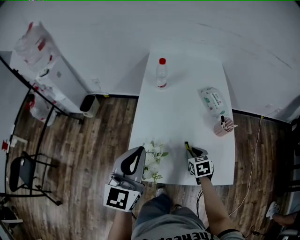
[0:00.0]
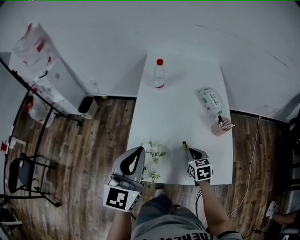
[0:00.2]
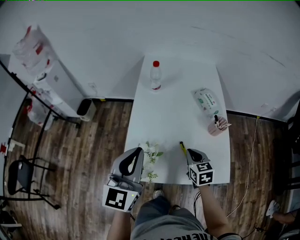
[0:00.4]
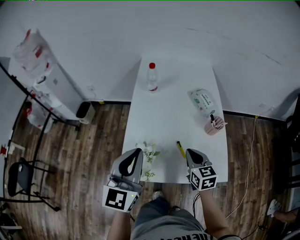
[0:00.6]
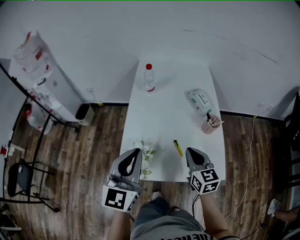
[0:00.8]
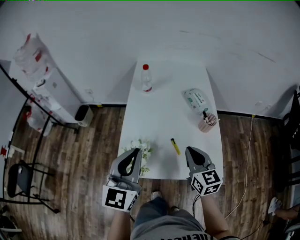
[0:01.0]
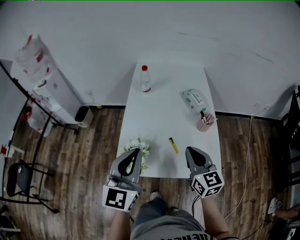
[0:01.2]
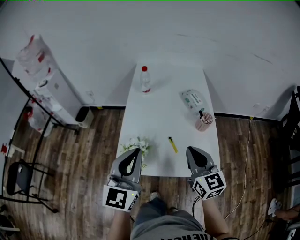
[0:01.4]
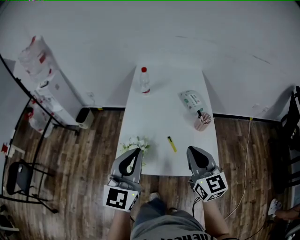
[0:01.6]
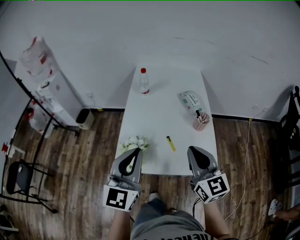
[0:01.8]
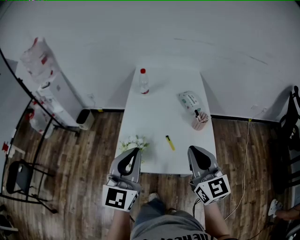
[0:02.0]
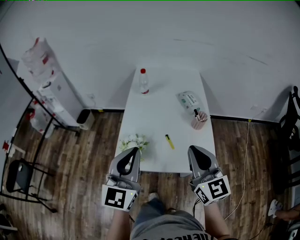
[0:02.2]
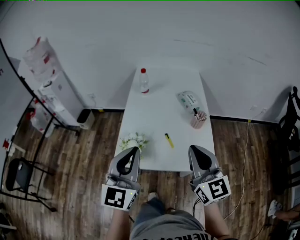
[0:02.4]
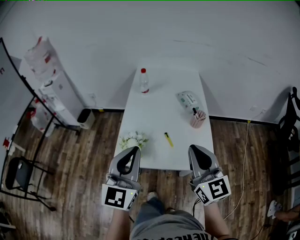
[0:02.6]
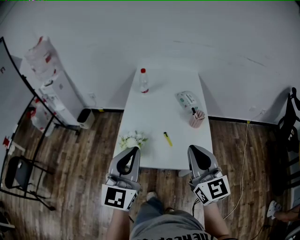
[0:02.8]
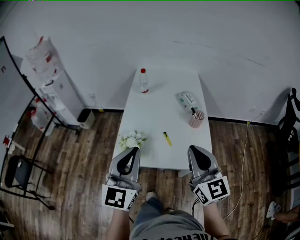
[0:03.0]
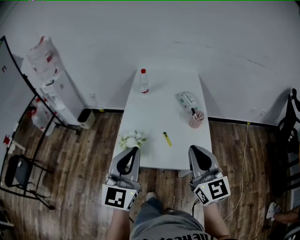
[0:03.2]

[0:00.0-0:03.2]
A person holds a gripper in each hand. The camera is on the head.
0:00.0 to 0:01.6: The right gripper heads upward and backward, covering about 30 cm, and tilts its fingers about 50 degrees upward; the left gripper is displaced backward and to the right by about 10 cm.
0:01.6 to 0:03.2: The right gripper shifts some 10 cm backward and upward, while the left gripper goes some 5 cm backward.

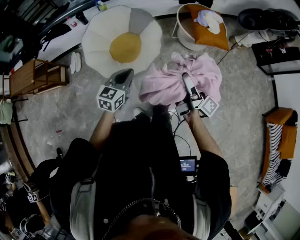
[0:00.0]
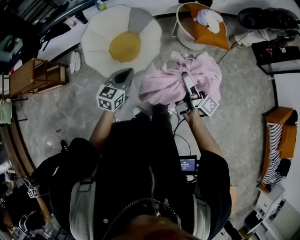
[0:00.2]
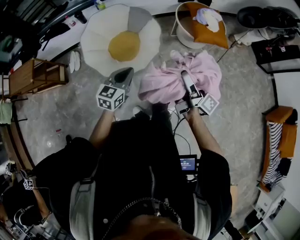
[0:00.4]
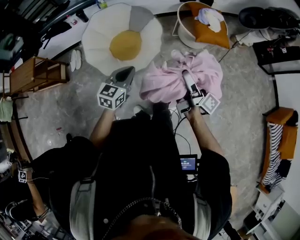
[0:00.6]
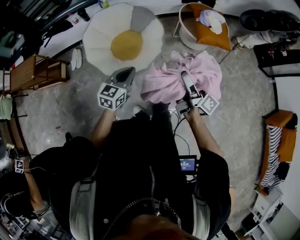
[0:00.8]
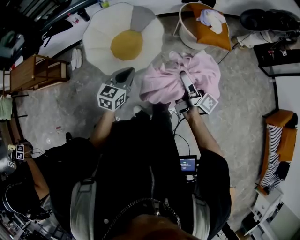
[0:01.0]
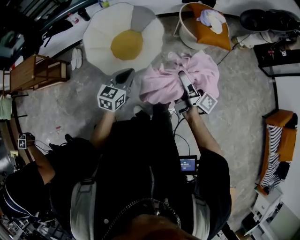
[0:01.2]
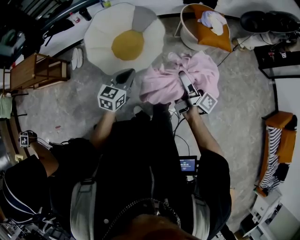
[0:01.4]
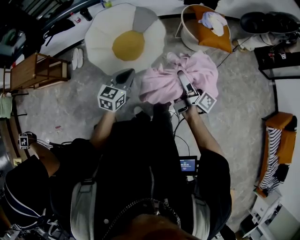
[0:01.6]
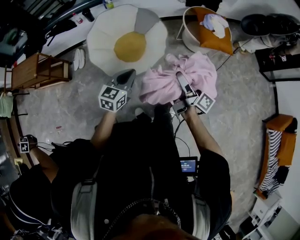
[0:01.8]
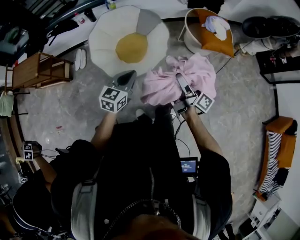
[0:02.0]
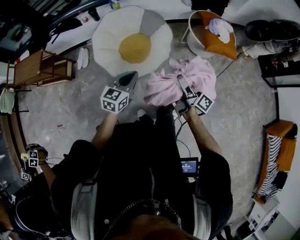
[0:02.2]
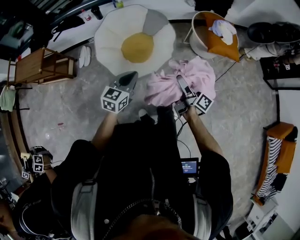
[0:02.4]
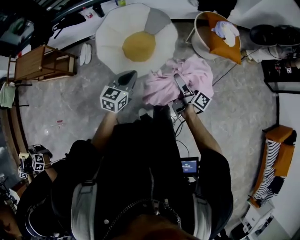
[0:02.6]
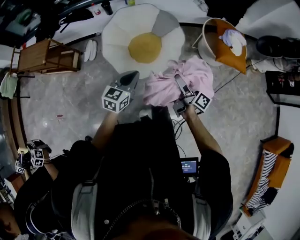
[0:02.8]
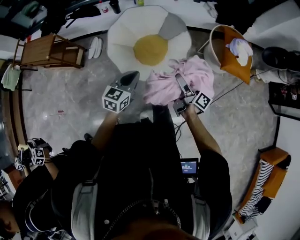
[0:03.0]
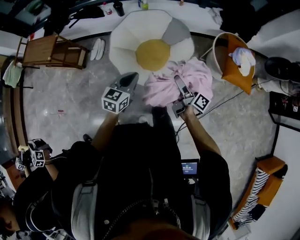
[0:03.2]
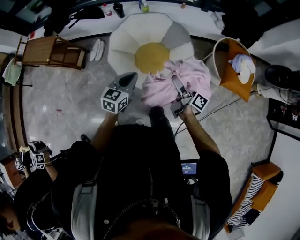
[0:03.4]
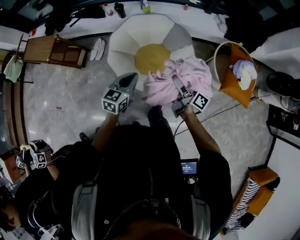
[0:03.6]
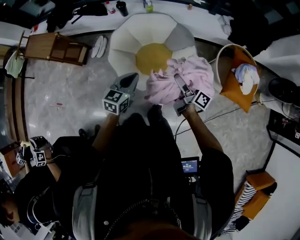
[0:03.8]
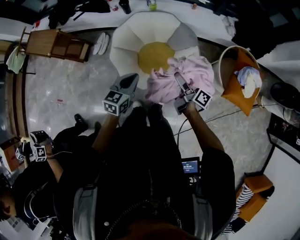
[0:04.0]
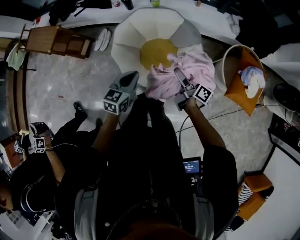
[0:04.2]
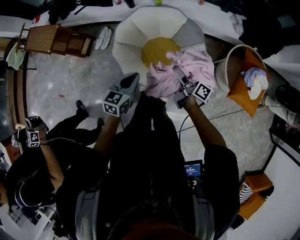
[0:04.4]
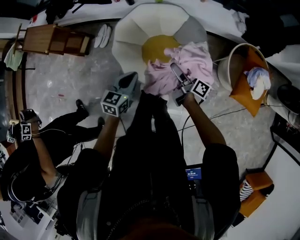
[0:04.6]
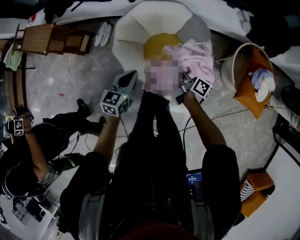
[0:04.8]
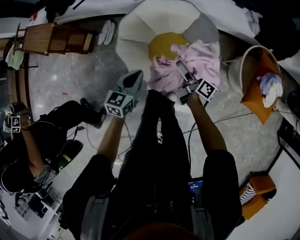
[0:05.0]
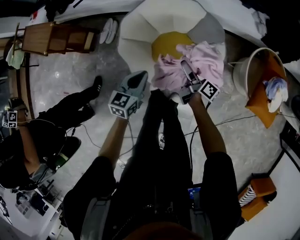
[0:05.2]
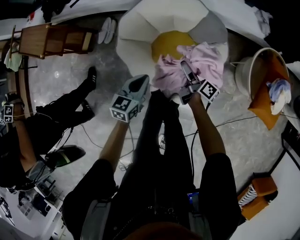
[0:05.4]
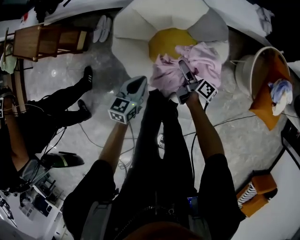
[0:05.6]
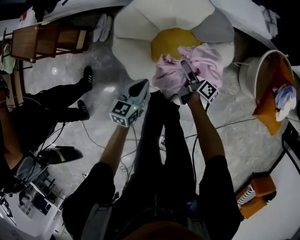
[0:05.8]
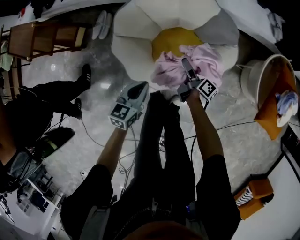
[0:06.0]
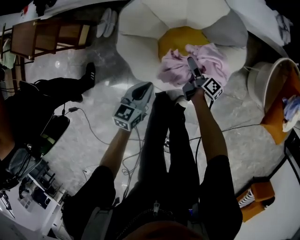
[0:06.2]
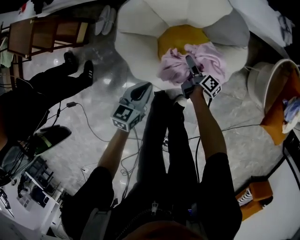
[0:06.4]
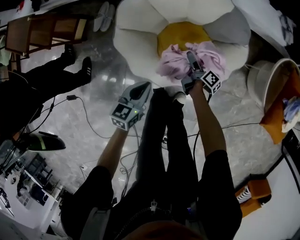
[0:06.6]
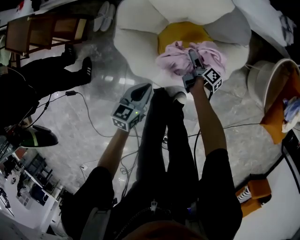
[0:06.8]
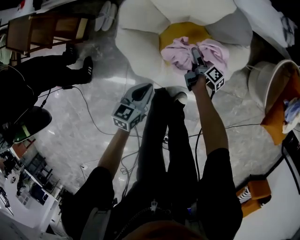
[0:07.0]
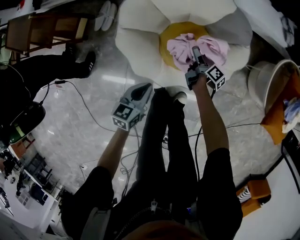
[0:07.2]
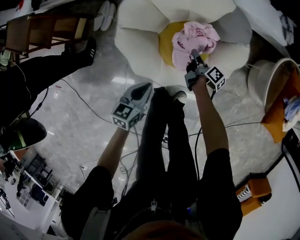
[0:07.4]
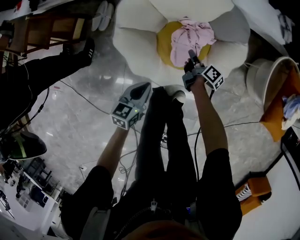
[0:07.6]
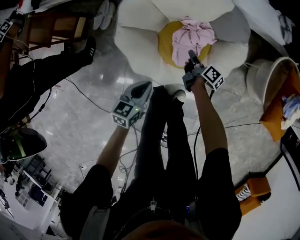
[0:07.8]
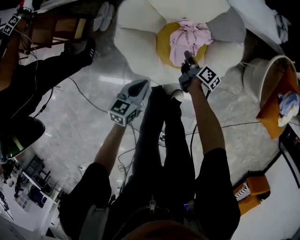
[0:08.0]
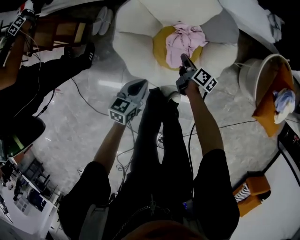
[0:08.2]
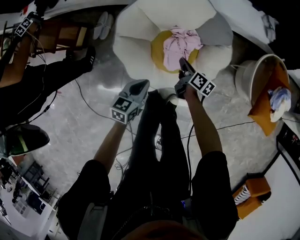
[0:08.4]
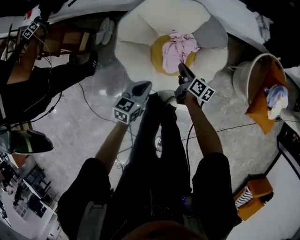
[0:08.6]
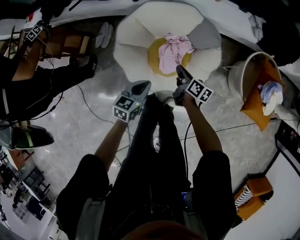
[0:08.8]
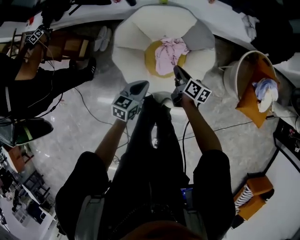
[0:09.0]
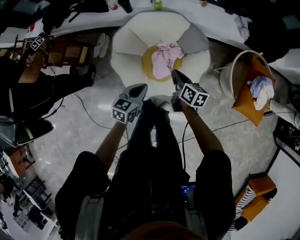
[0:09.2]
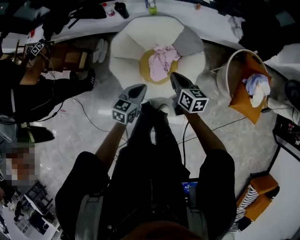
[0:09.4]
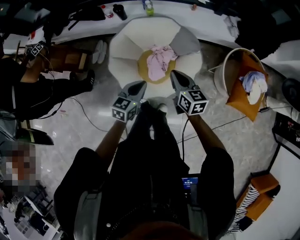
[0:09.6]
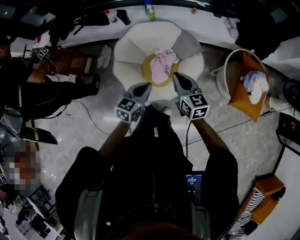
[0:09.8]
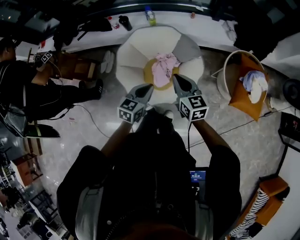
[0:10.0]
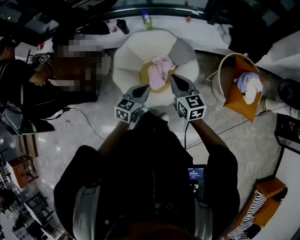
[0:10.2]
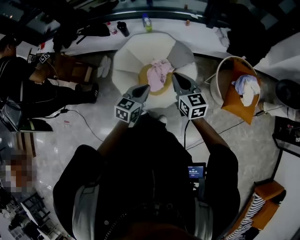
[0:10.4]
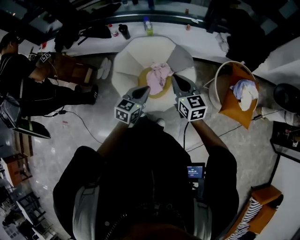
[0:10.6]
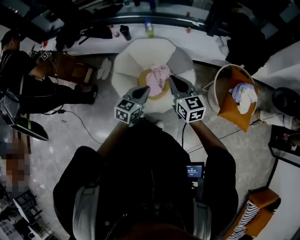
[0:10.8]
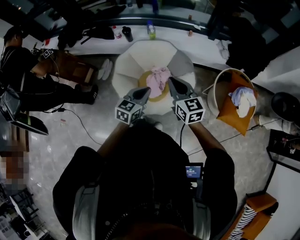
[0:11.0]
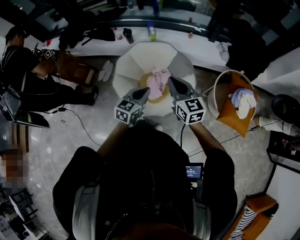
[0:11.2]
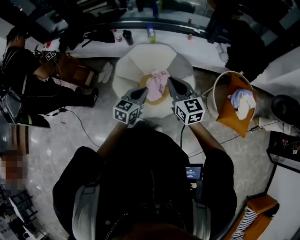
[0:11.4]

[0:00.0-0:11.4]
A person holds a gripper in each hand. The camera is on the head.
0:00.0 to 0:01.4: The grippers make only small movements.
0:01.4 to 0:02.8: The right gripper moves to the left, downward and forward, about 15 cm; the left gripper heads to the left, covering approximately 5 cm.
0:02.8 to 0:04.2: The two grippers go roughly 20 cm forward.
0:04.2 to 0:05.6: Both grippers move downward and forward, roughly 25 cm.
0:05.6 to 0:07.2: The right gripper moves downward, some 20 cm; the left gripper shifts roughly 10 cm downward.
0:07.2 to 0:08.6: The left gripper shifts approximately 10 cm upward. The right gripper moves upward, roughly 20 cm, changes its angle by some 30 degrees, and closes.
0:08.6 to 0:10.0: The left gripper moves upward and to the right, about 20 cm, while the right gripper moves upward, some 30 cm, and twists approximately 50 degrees counterclockwise, seen from behind.
0:10.0 to 0:11.4: The right gripper is displaced upward by about 10 cm.

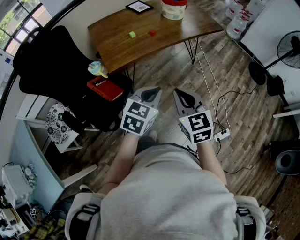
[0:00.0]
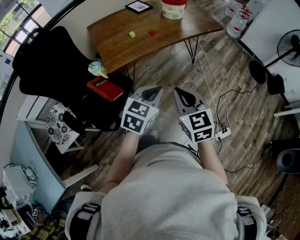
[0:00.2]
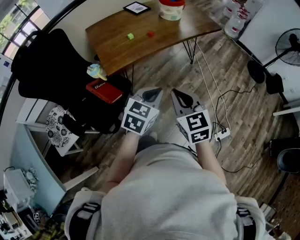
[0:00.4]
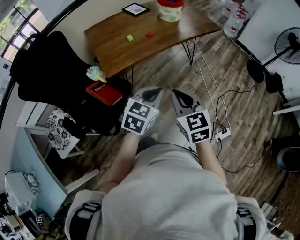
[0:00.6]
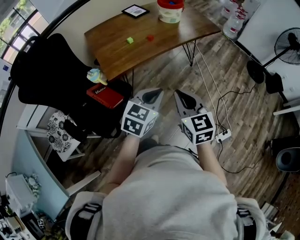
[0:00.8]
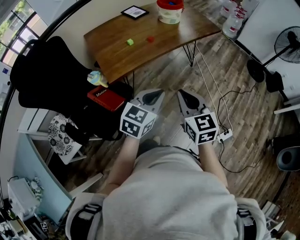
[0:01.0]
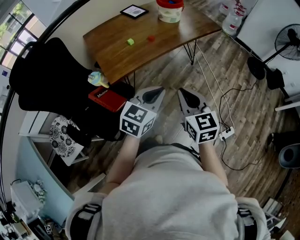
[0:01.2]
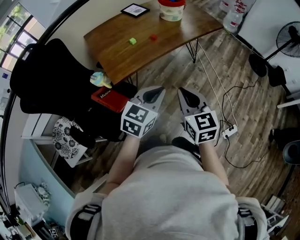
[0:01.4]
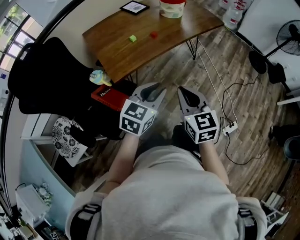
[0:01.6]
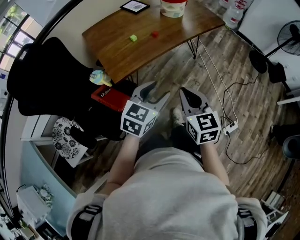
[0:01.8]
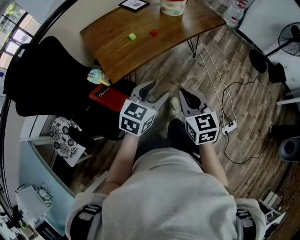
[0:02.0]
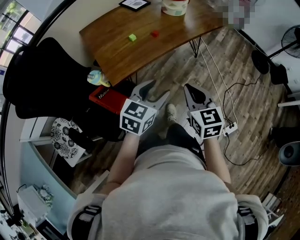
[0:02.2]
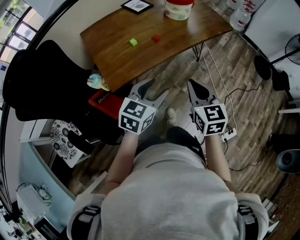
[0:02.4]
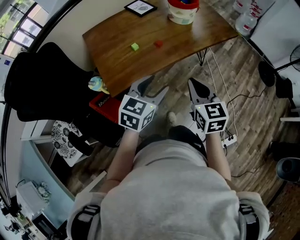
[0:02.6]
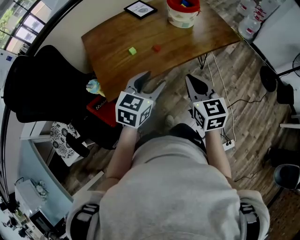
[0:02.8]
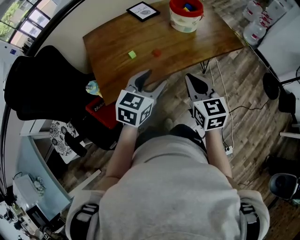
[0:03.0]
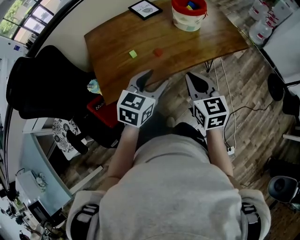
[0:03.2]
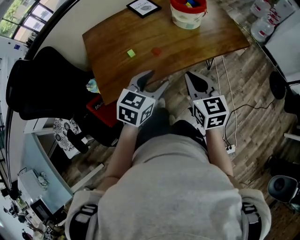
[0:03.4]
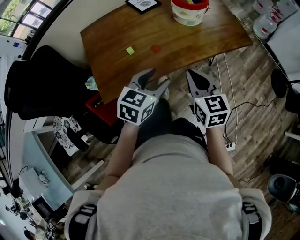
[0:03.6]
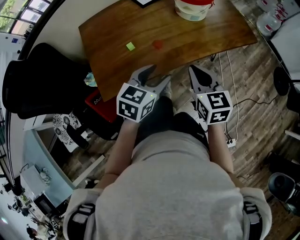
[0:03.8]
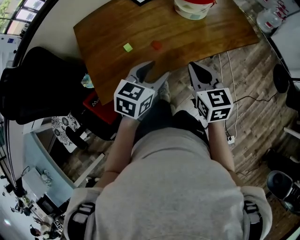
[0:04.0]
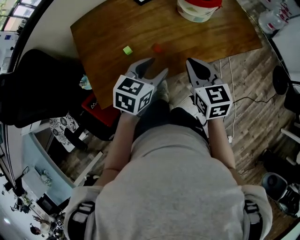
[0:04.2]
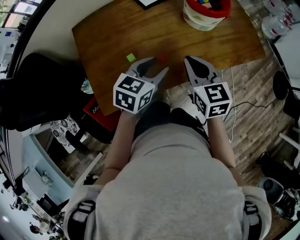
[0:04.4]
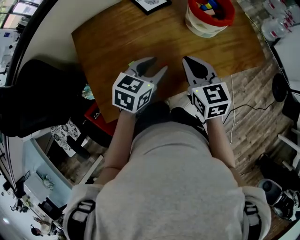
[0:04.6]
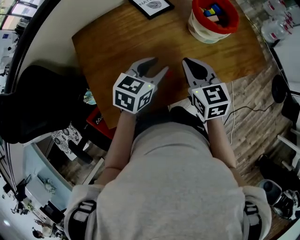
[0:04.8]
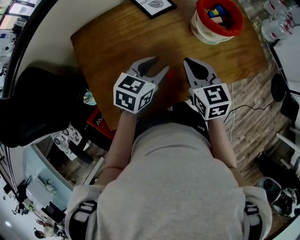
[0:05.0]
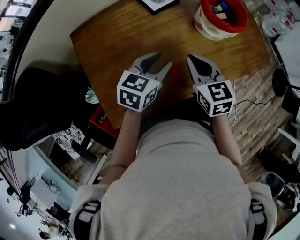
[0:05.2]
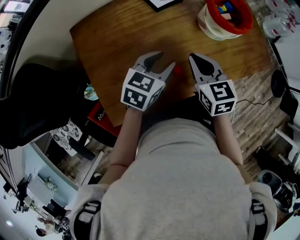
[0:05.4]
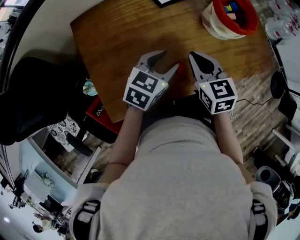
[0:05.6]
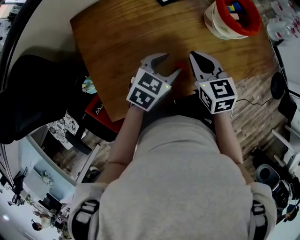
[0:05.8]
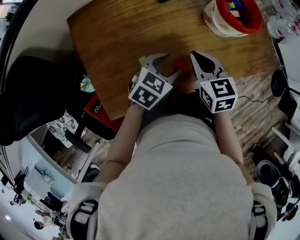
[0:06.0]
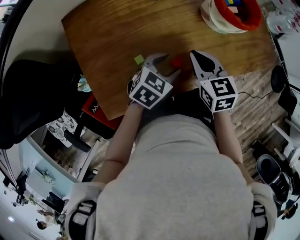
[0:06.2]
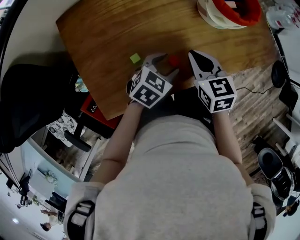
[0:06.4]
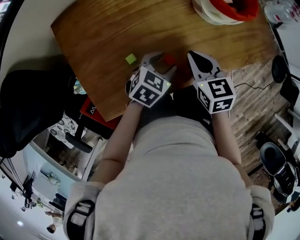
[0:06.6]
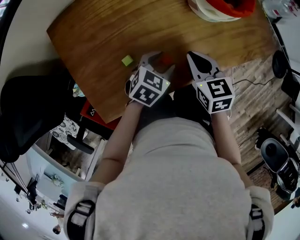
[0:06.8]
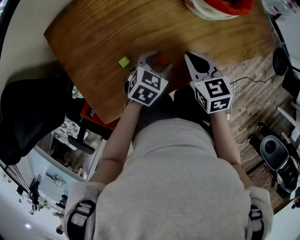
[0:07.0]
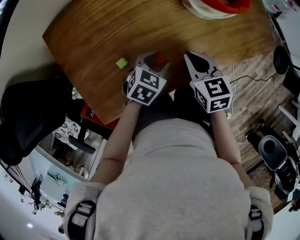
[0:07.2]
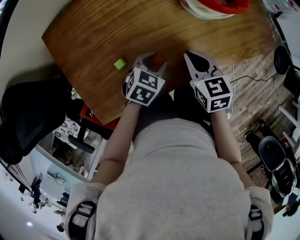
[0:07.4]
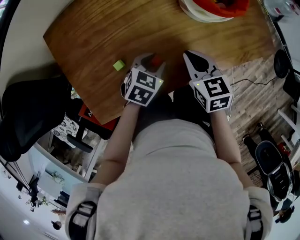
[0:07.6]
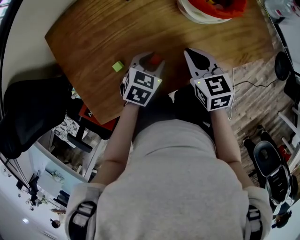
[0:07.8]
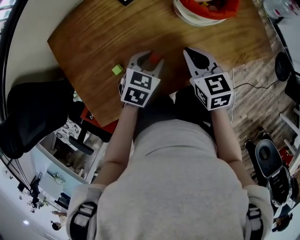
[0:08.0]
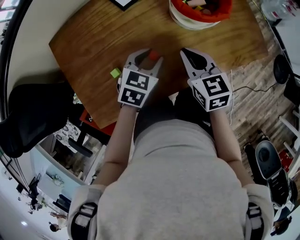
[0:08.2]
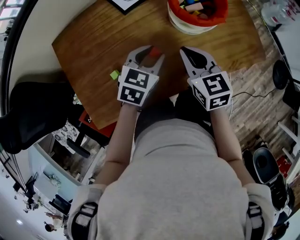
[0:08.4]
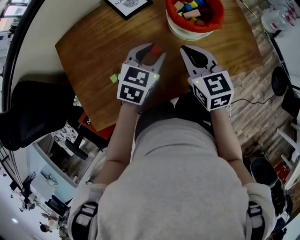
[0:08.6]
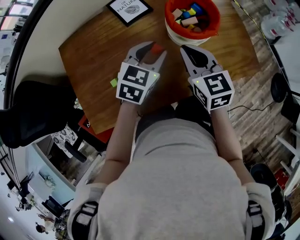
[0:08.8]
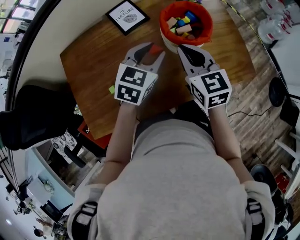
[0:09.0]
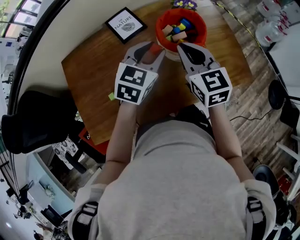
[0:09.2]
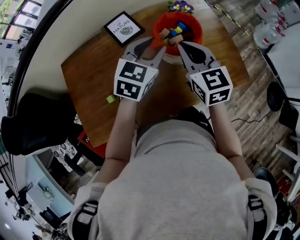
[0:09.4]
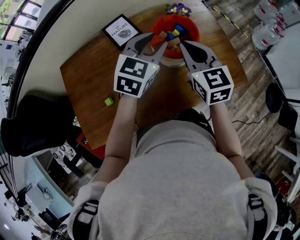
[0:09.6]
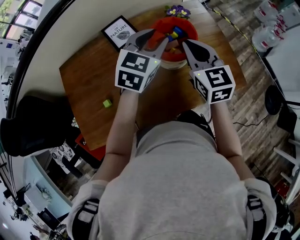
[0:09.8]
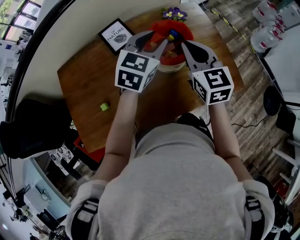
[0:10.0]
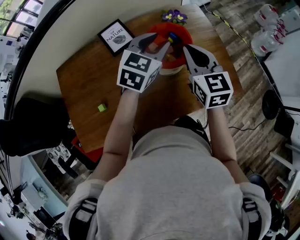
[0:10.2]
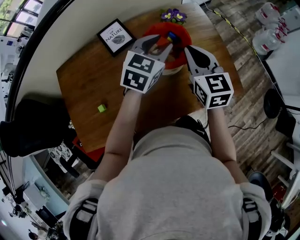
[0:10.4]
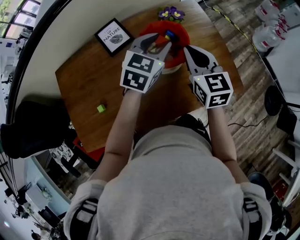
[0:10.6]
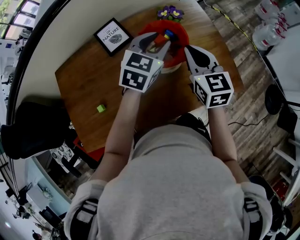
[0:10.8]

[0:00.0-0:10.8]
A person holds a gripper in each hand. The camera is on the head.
0:00.0 to 0:01.6: The left gripper goes some 5 cm to the left and forward, and opens up, while the right gripper travels forward by about 5 cm.
0:01.6 to 0:03.0: Both grippers travel together forward, about 25 cm. The left gripper opens.
0:03.0 to 0:04.6: The two grippers go approximately 20 cm forward.
0:04.6 to 0:06.2: Both grippers travel together downward, about 10 cm.
0:06.2 to 0:07.8: The left gripper shifts by about 5 cm; the right gripper travels to the right by roughly 5 cm.
0:07.8 to 0:09.2: Both grippers travel together upward and forward, about 20 cm. The right gripper changes its angle by some 20 degrees. The left gripper changes its angle by some 30 degrees.
0:09.2 to 0:10.8: The left gripper shifts approximately 15 cm forward and to the right. Meanwhile the right gripper moves to the right and forward, about 10 cm.
